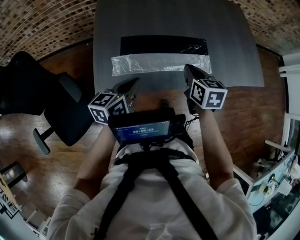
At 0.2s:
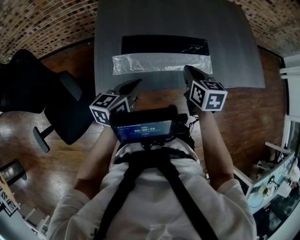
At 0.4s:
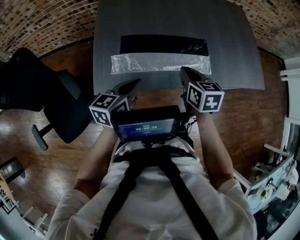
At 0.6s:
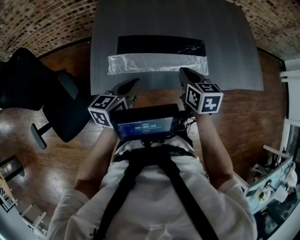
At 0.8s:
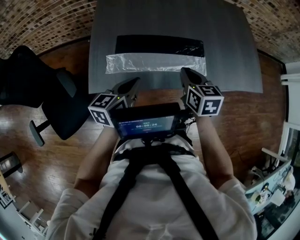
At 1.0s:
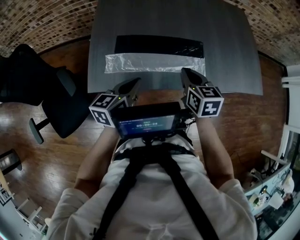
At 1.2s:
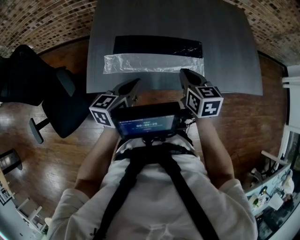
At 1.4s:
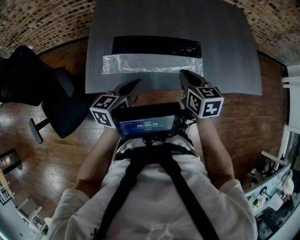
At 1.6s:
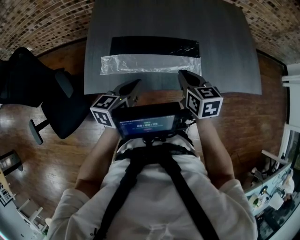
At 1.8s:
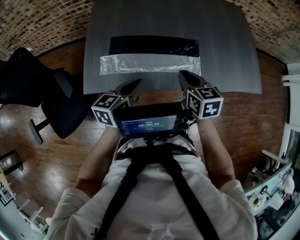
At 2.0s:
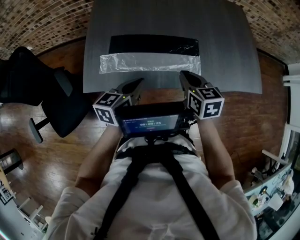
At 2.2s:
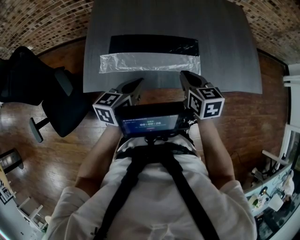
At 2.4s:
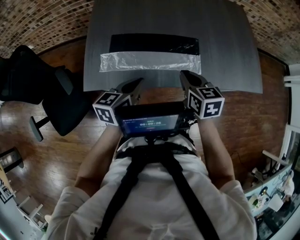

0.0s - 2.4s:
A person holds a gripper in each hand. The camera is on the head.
0.0s - 1.2s: The left gripper heads to the right, covering approximately 5 cm.
1.2s - 2.4s: The grippers make only small movements.

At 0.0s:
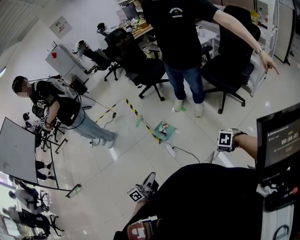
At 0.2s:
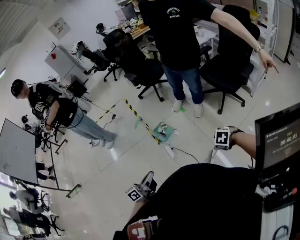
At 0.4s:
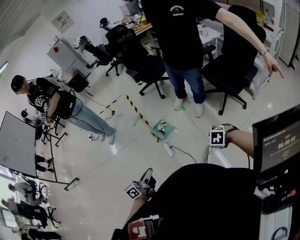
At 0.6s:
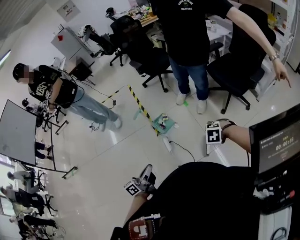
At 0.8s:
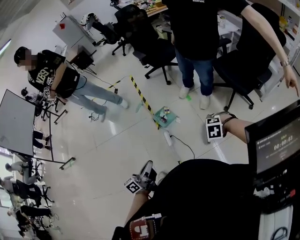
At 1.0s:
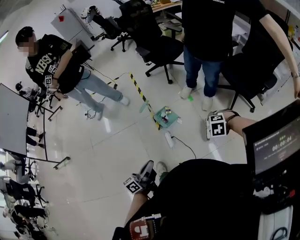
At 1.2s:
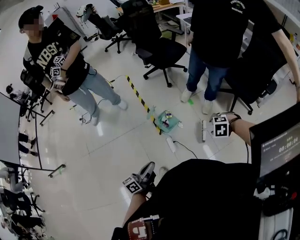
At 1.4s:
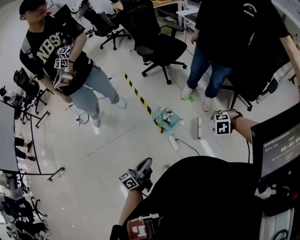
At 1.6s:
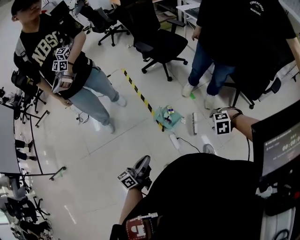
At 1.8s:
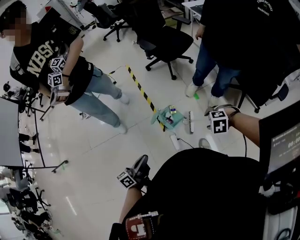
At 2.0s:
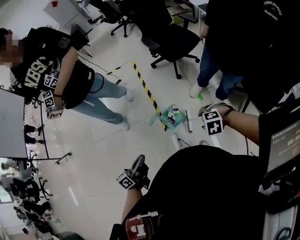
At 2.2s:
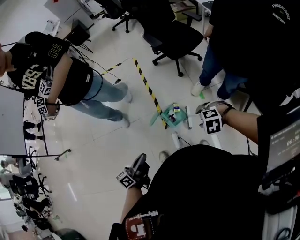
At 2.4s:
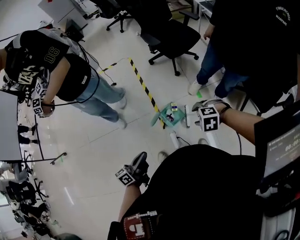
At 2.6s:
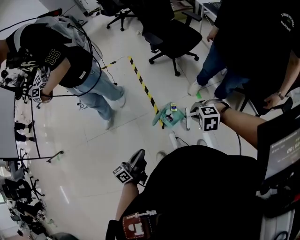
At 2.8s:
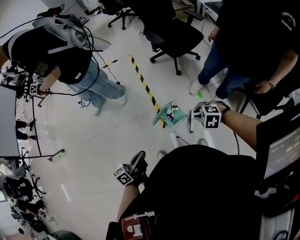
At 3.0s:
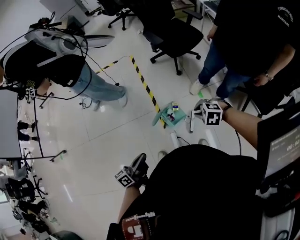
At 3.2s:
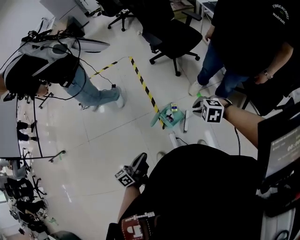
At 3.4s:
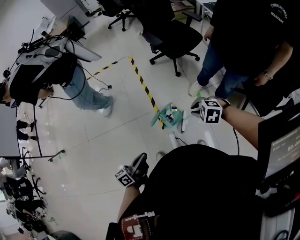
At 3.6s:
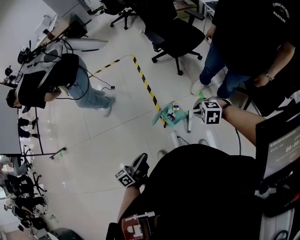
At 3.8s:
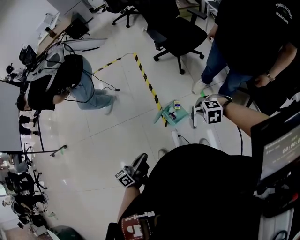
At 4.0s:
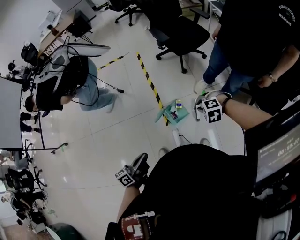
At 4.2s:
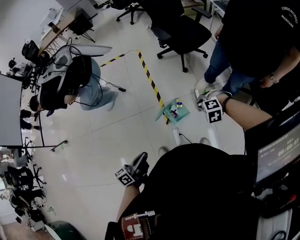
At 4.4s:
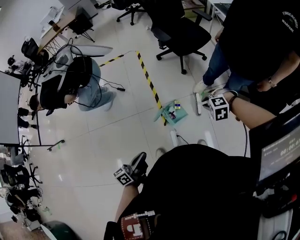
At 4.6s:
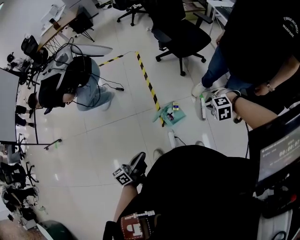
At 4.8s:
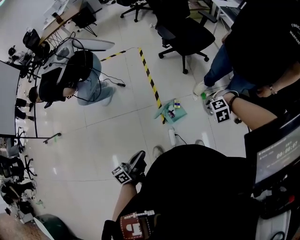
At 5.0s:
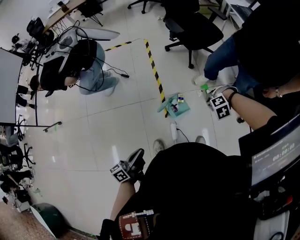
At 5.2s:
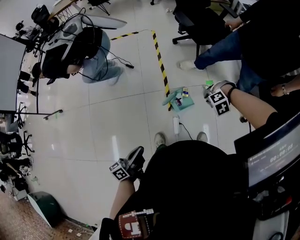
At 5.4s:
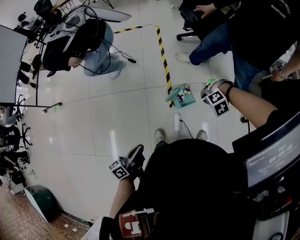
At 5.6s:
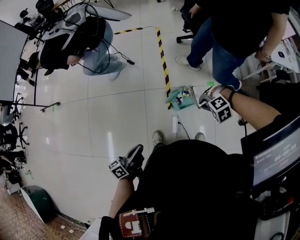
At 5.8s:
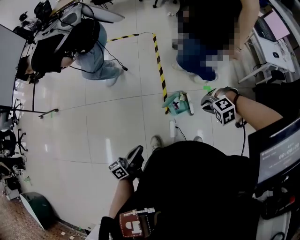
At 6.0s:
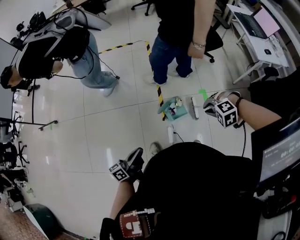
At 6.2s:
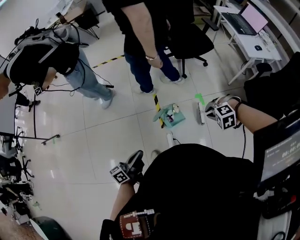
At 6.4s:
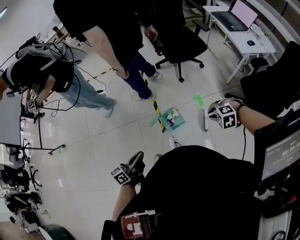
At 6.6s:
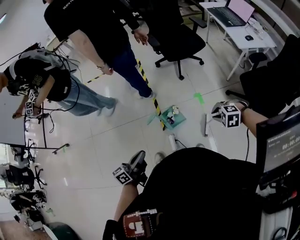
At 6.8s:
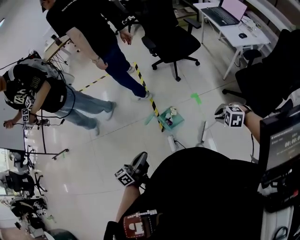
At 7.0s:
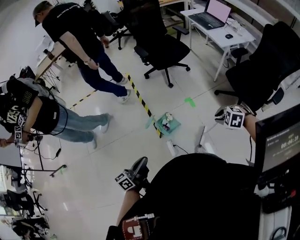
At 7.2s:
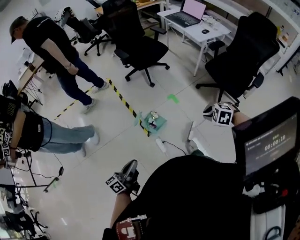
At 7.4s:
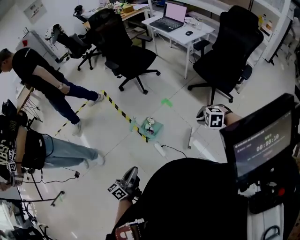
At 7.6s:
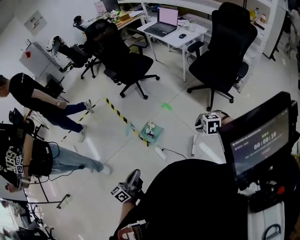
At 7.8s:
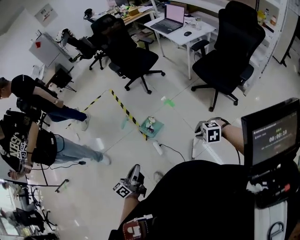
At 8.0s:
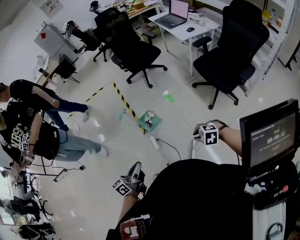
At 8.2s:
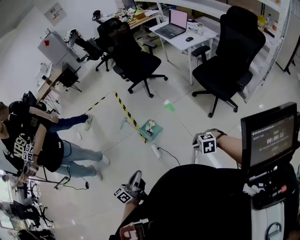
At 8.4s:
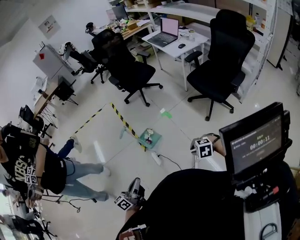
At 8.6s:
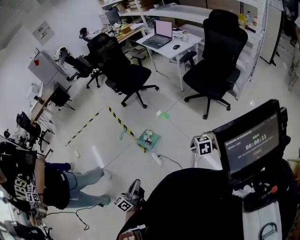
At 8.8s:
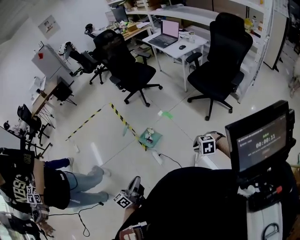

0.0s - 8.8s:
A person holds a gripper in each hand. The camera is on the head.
0.0s - 1.4s: The left gripper shifts by approximately 30 cm.
1.4s - 3.0s: The left gripper shifts by some 10 cm.
4.4s - 5.8s: The left gripper moves about 10 cm.
5.8s - 7.4s: The left gripper shifts by some 10 cm, and swivels roughly 30 degrees.
7.4s - 8.8s: The left gripper changes place by roughly 20 cm.

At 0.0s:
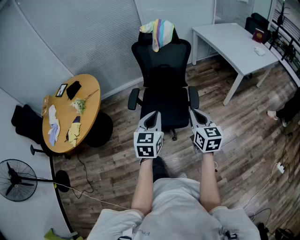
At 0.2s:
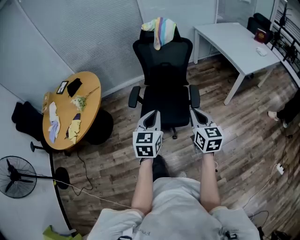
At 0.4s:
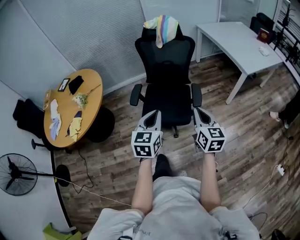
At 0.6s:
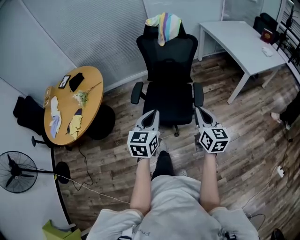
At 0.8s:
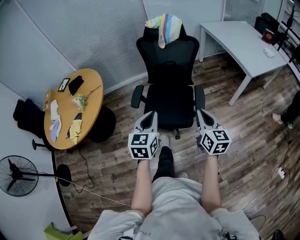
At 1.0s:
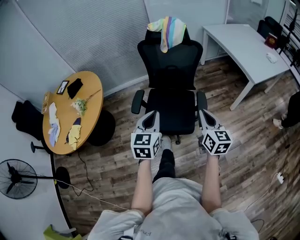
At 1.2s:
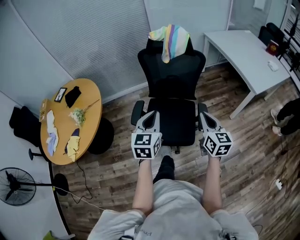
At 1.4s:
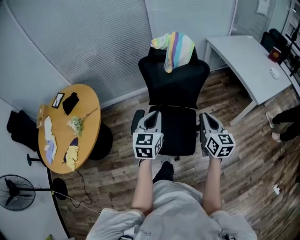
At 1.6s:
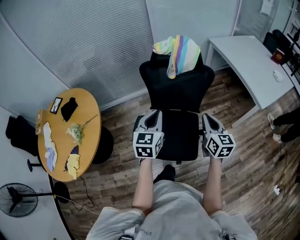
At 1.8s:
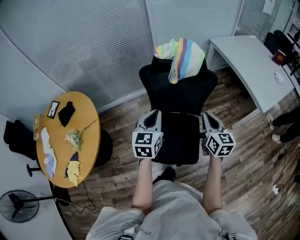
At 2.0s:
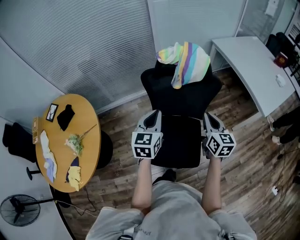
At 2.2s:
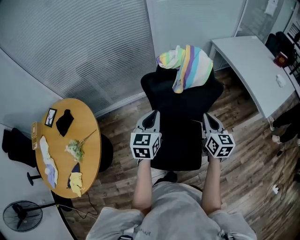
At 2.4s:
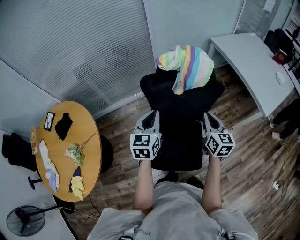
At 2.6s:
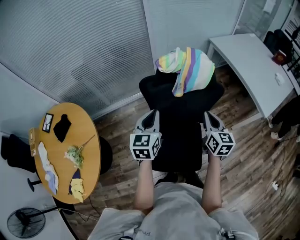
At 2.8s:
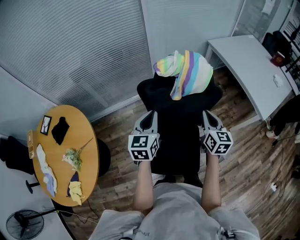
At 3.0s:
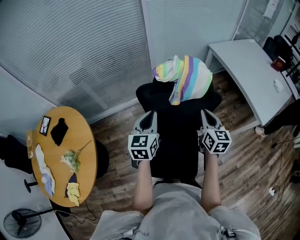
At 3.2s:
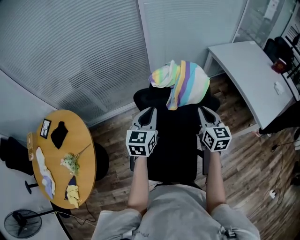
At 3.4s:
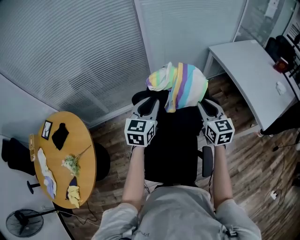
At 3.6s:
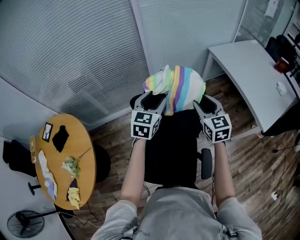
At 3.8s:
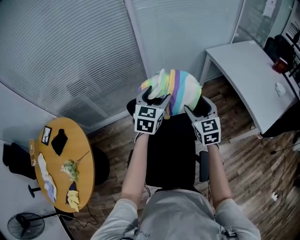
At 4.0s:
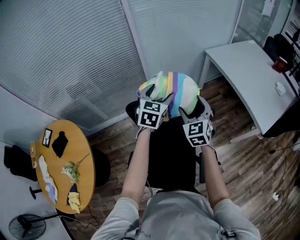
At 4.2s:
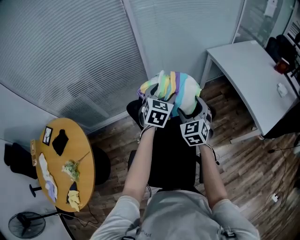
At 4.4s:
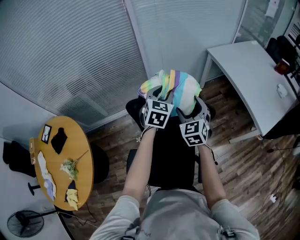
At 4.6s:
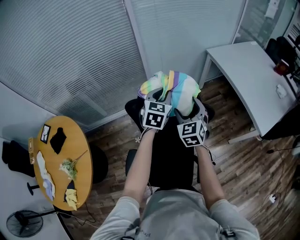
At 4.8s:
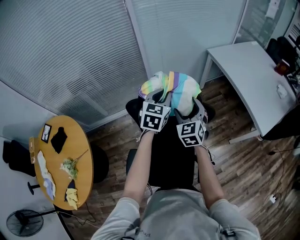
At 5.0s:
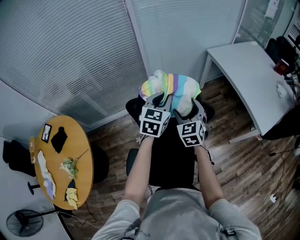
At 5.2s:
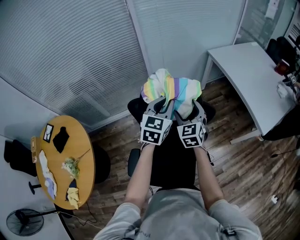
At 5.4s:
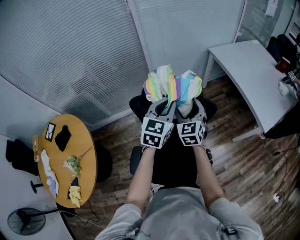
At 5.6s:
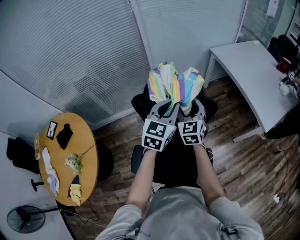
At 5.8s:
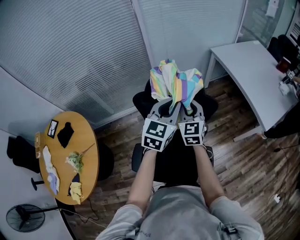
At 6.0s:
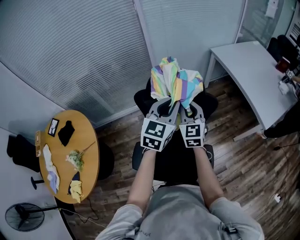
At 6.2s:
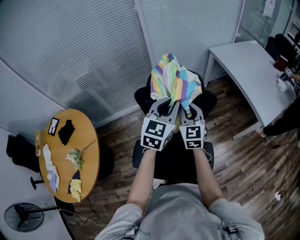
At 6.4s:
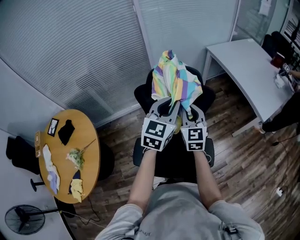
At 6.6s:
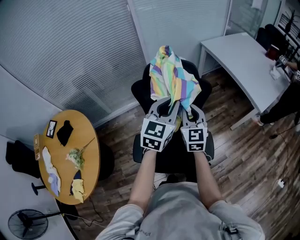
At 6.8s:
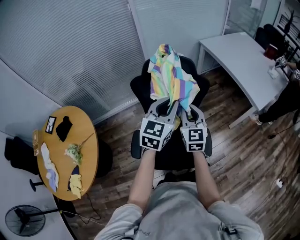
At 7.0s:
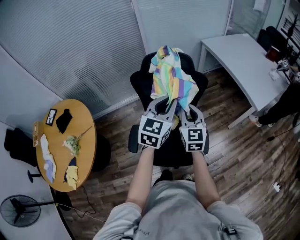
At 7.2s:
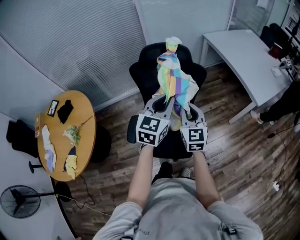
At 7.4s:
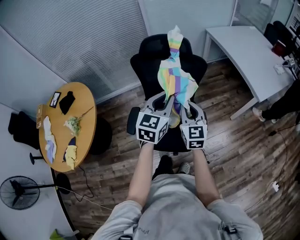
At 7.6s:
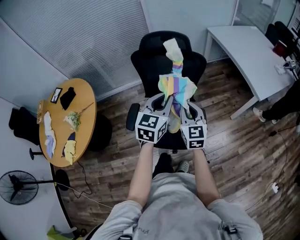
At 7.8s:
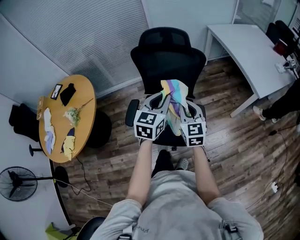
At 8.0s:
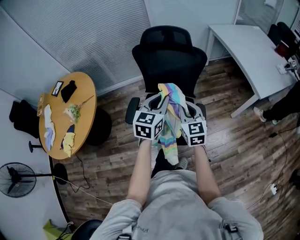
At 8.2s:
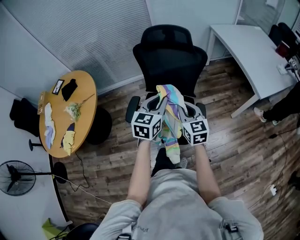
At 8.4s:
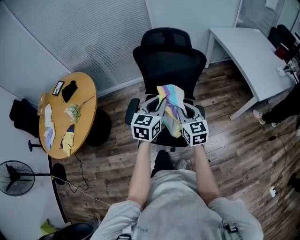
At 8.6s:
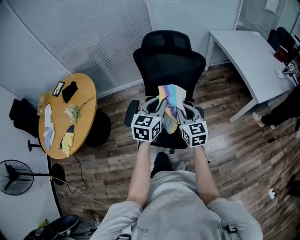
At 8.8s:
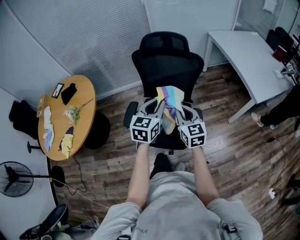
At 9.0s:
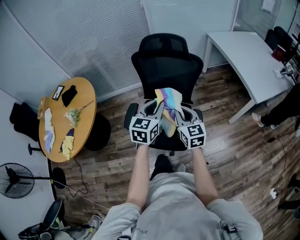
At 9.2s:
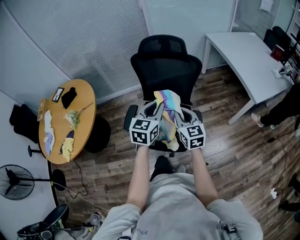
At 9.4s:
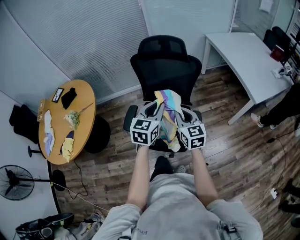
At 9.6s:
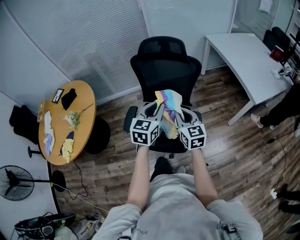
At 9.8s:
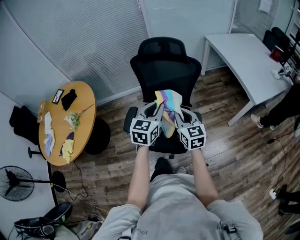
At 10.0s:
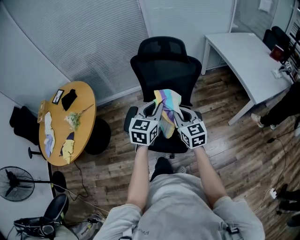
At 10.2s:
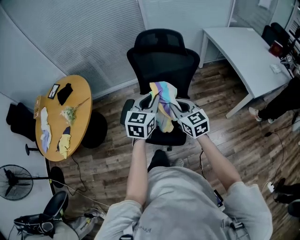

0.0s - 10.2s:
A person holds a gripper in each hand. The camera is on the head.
0.0s - 1.4s: The grippers both shift forward by approximately 25 cm.
1.4s - 3.0s: Both grippers move forward, some 25 cm.
3.0s - 4.4s: The right gripper shifts about 10 cm forward, swivels roughly 40 degrees, and opens up; the left gripper travels forward and to the right by approximately 25 cm, turns by roughly 20 degrees, and opens its fingers.
4.4s - 5.8s: The right gripper moves backward, roughly 5 cm, and closes. The left gripper moves backward and upward, about 15 cm.
5.8s - 7.2s: Both grippers travel together backward, some 20 cm.
7.2s - 8.8s: The two grippers go some 10 cm backward and downward.
8.8s - 10.2s: The grippers move only a little.

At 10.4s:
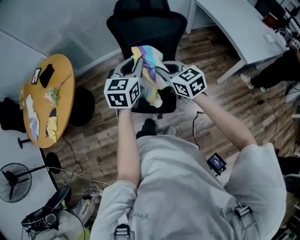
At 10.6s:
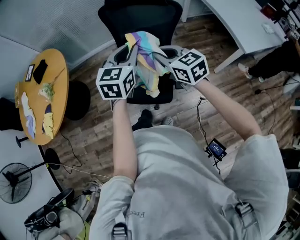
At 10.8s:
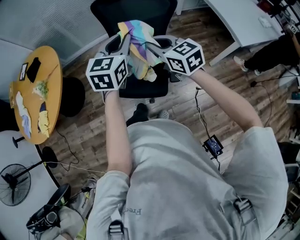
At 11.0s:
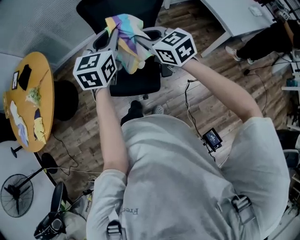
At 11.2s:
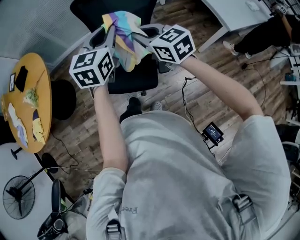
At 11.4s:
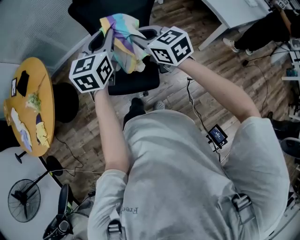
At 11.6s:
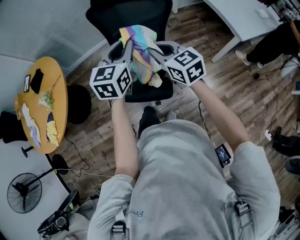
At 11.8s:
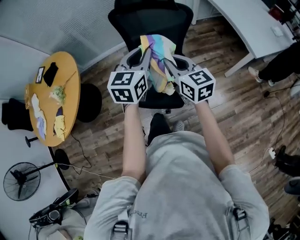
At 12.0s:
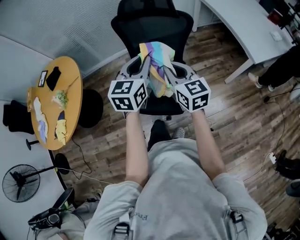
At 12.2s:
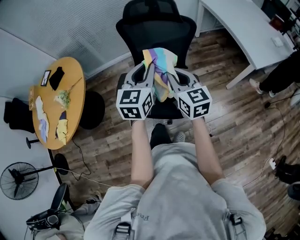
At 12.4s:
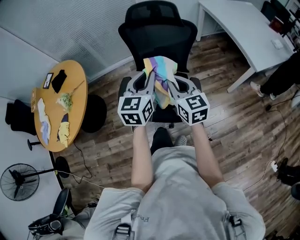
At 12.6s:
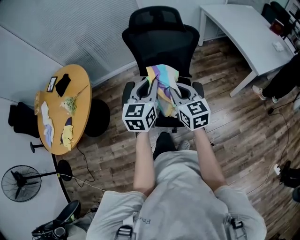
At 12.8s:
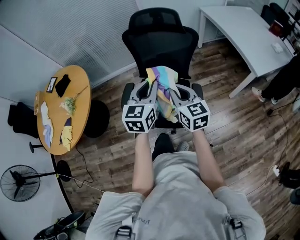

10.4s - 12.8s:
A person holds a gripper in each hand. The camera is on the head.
10.4s - 11.6s: The grippers make only small movements.
11.6s - 12.8s: The left gripper shifts by about 5 cm, while the right gripper shifts by some 5 cm.
